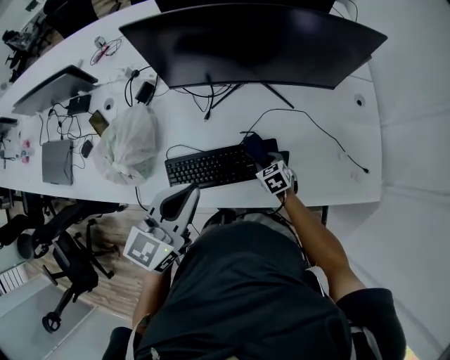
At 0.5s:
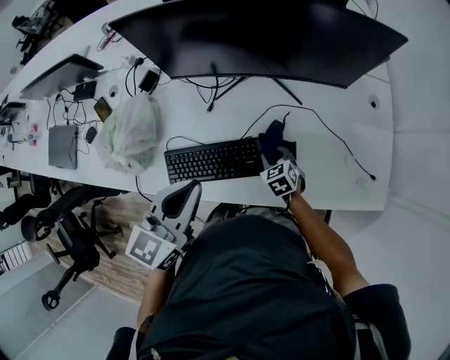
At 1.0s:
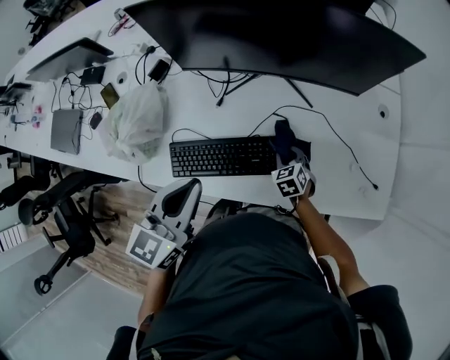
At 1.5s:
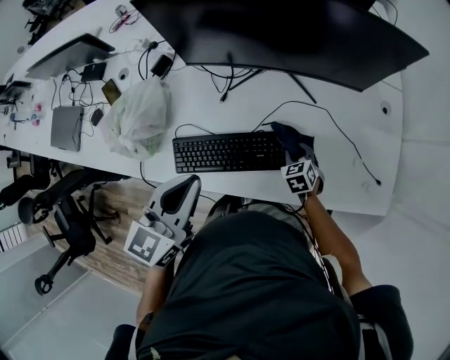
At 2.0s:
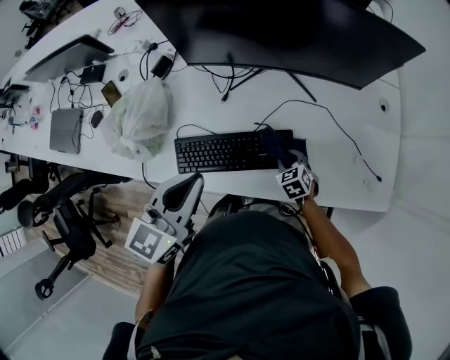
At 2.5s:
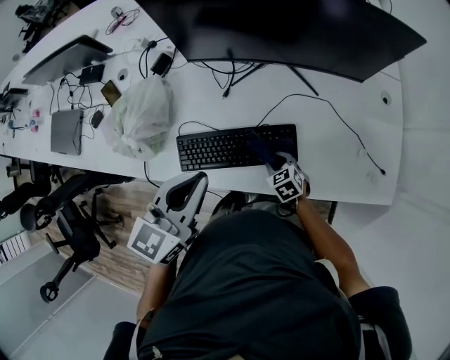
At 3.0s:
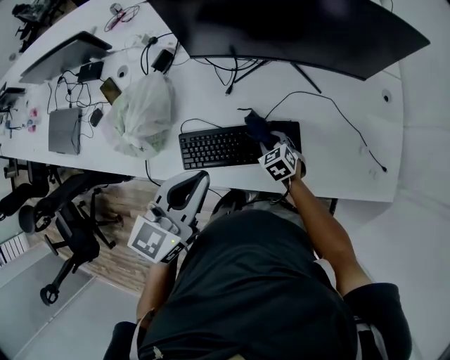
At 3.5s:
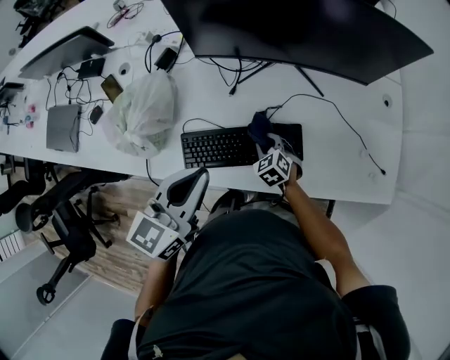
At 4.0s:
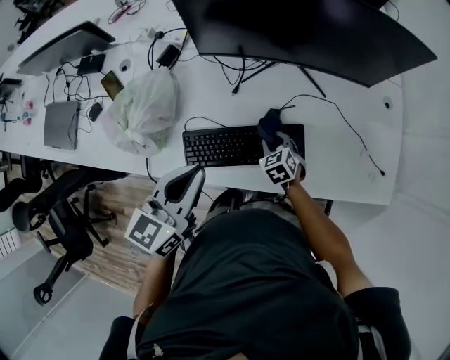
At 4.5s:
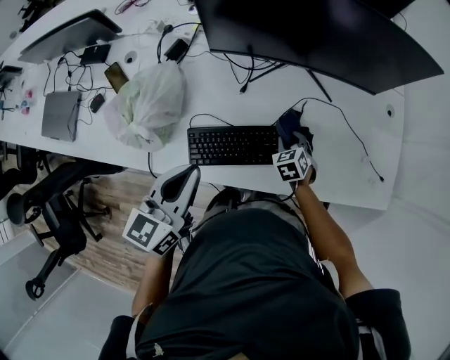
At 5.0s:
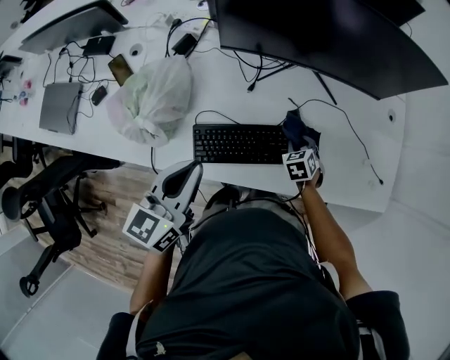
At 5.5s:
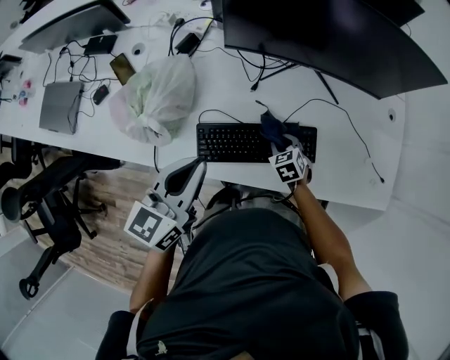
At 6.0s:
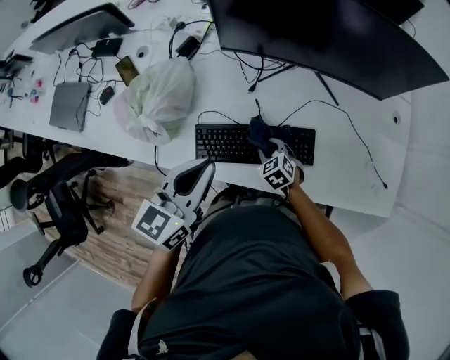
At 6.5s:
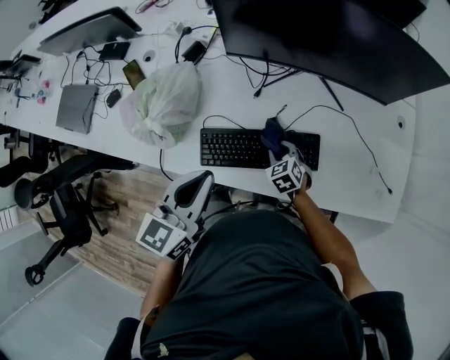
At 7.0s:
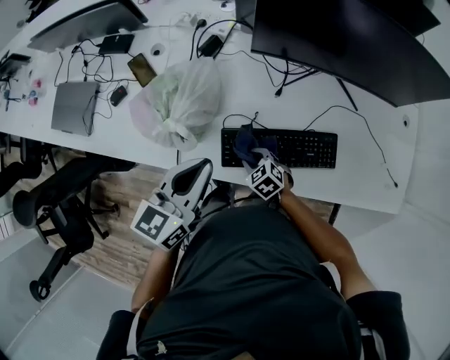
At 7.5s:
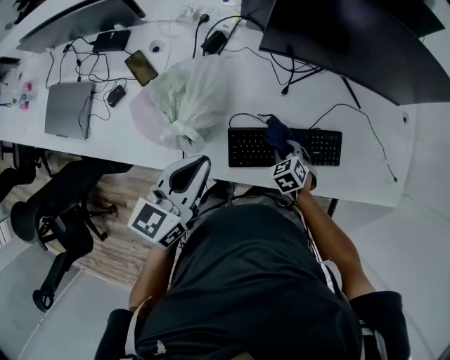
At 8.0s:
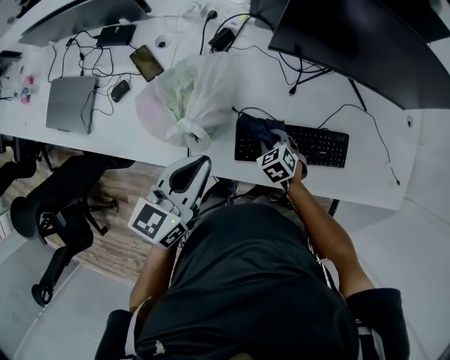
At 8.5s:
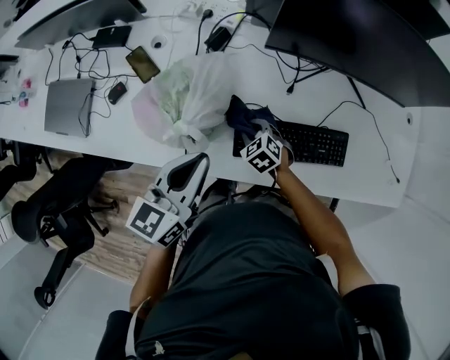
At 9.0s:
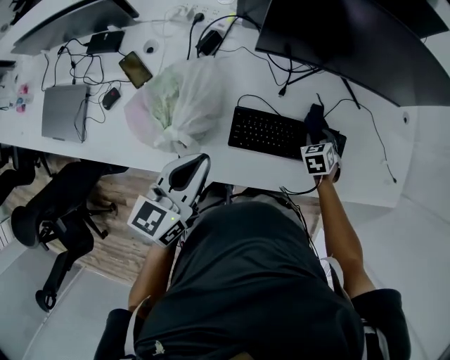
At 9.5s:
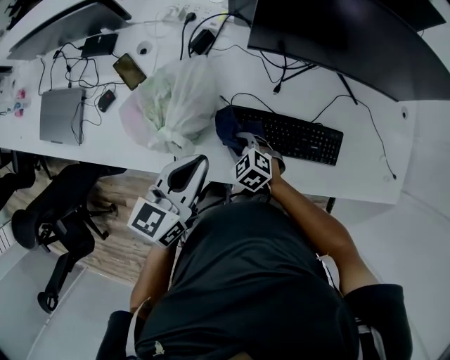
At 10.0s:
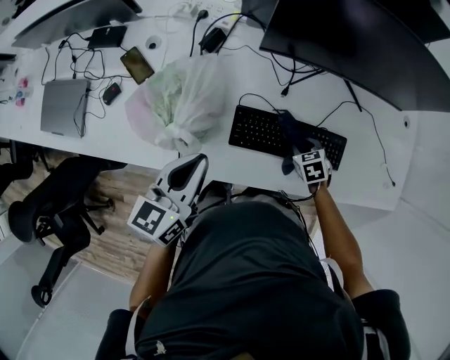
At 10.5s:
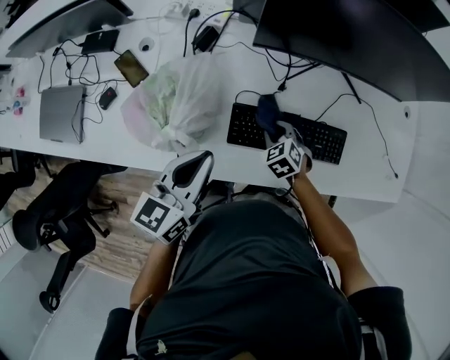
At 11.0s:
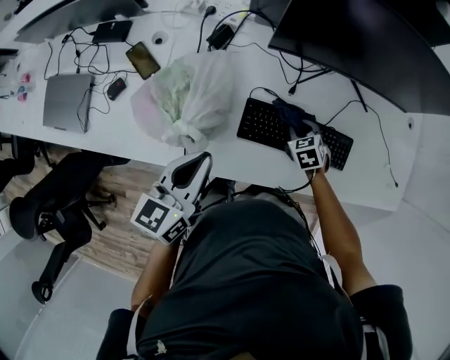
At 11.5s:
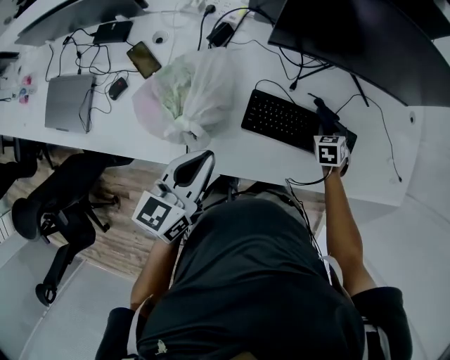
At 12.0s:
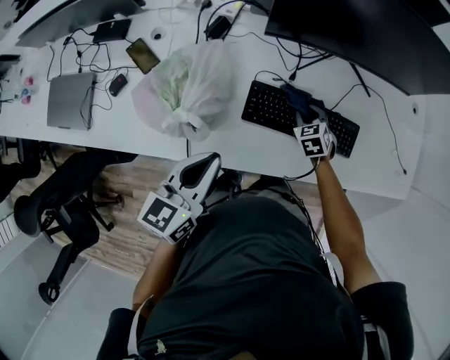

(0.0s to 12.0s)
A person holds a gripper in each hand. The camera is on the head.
2.0s - 4.0s: The left gripper shifts some 5 cm to the left, while the right gripper shifts approximately 10 cm to the left.
4.0s - 6.0s: The right gripper shifts roughly 5 cm to the left.
6.0s - 8.0s: The left gripper is displaced to the left by some 15 cm, while the right gripper goes left and right, some 20 cm each way, reversing 2 times.
8.0s - 10.0s: The right gripper shifts by approximately 15 cm.
10.0s - 12.0s: The right gripper moves left and right over about 15 cm, changing direction 2 times.

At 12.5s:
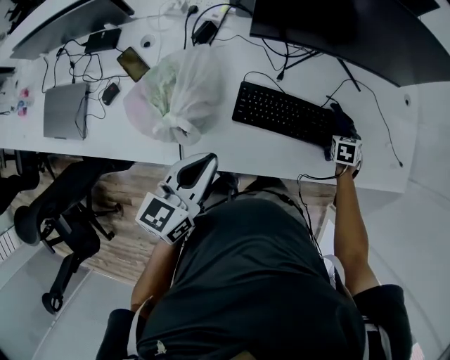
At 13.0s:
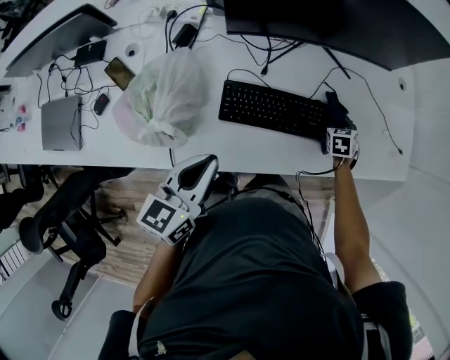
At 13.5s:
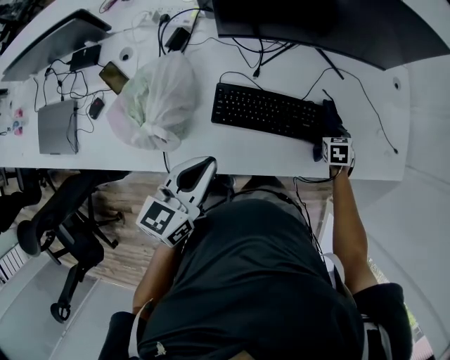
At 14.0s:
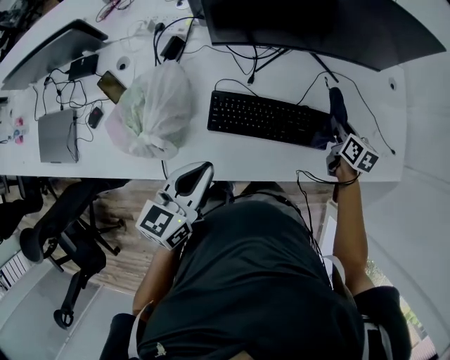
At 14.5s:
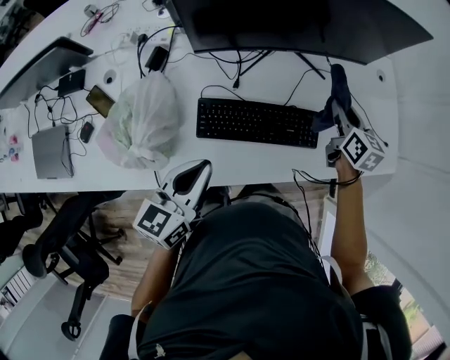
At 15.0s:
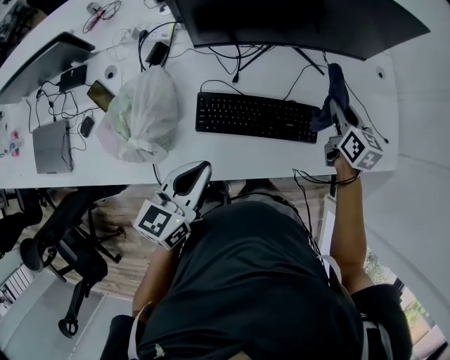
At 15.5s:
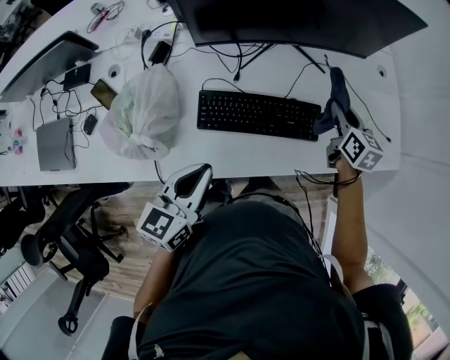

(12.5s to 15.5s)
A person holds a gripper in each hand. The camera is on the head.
12.5s - 14.0s: The left gripper heads to the right, covering about 5 cm; the right gripper shifts roughly 10 cm upward, and swivels about 40 degrees.
14.0s - 15.5s: The right gripper shifts some 10 cm upward.

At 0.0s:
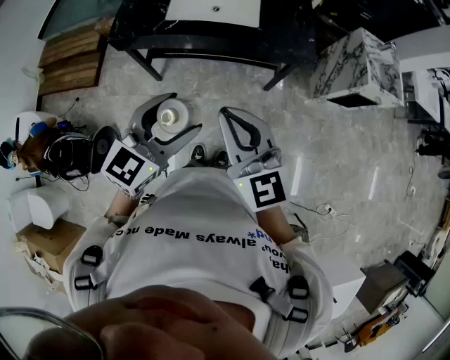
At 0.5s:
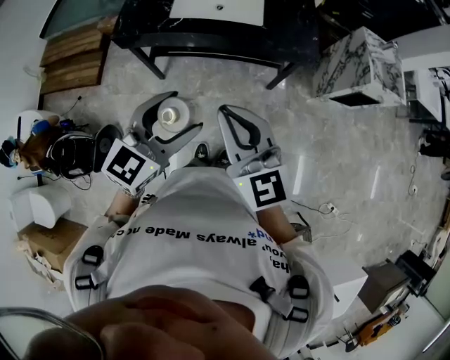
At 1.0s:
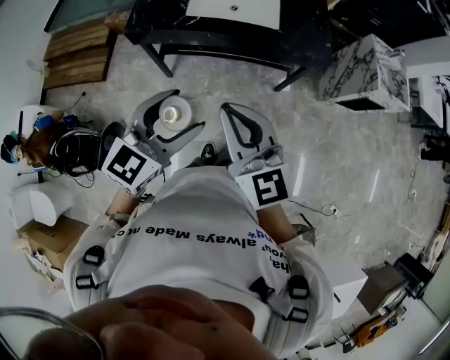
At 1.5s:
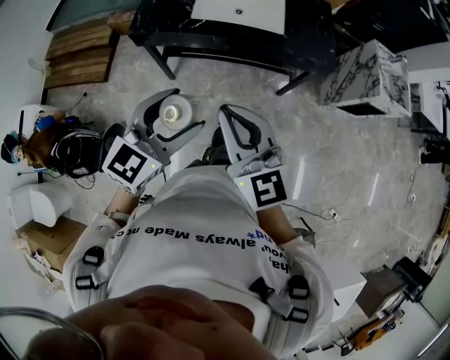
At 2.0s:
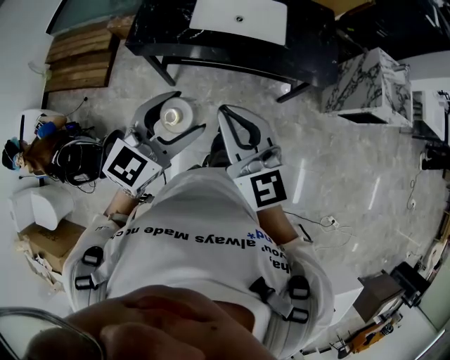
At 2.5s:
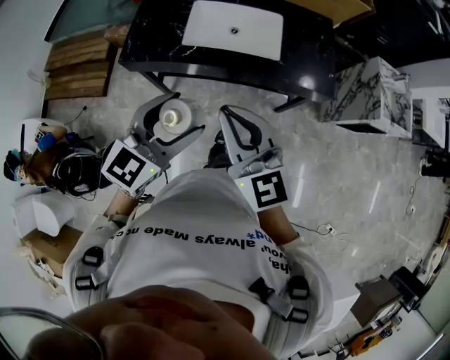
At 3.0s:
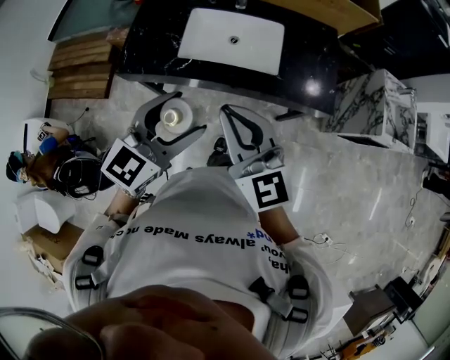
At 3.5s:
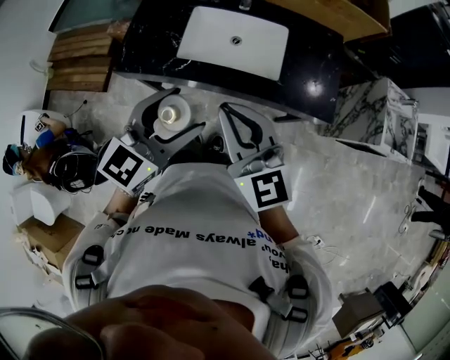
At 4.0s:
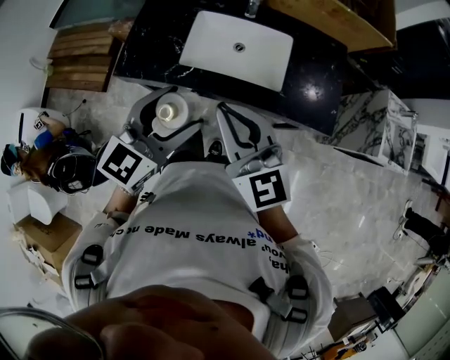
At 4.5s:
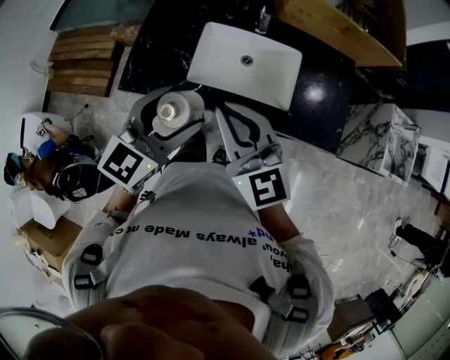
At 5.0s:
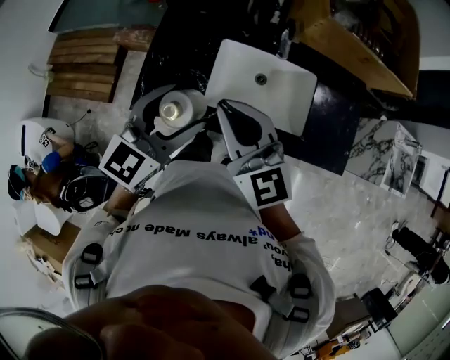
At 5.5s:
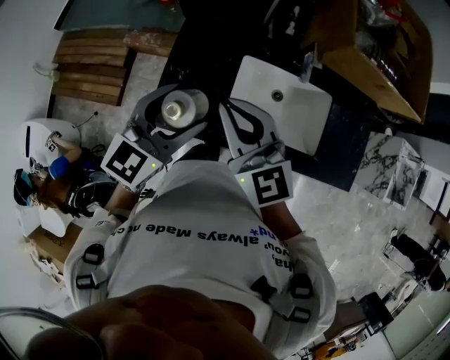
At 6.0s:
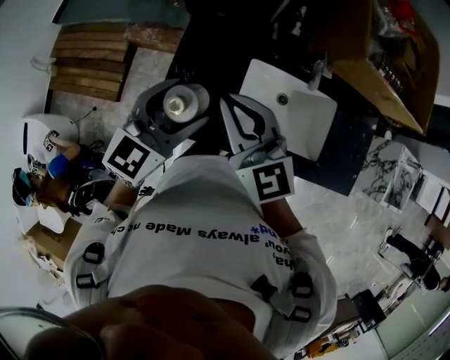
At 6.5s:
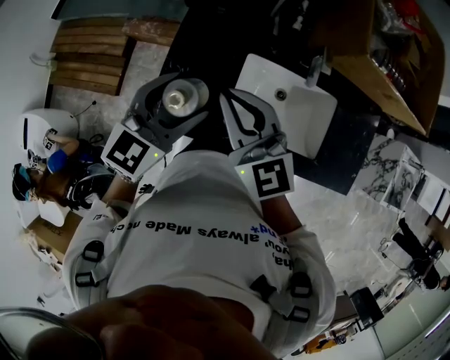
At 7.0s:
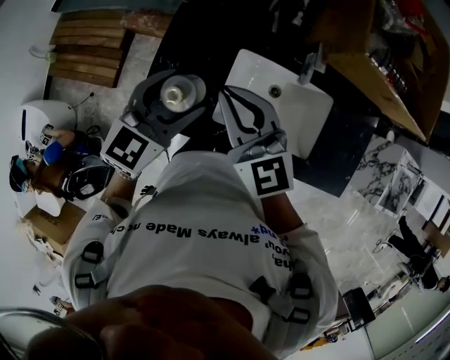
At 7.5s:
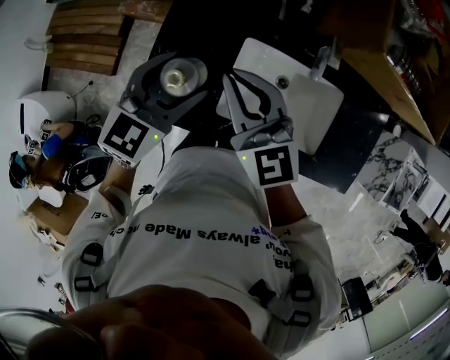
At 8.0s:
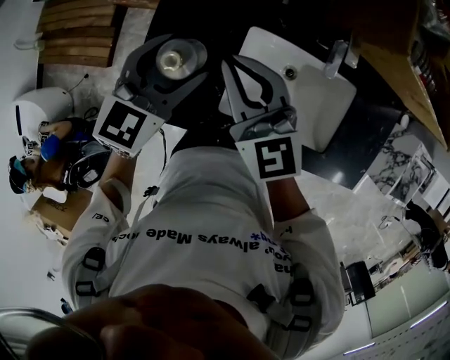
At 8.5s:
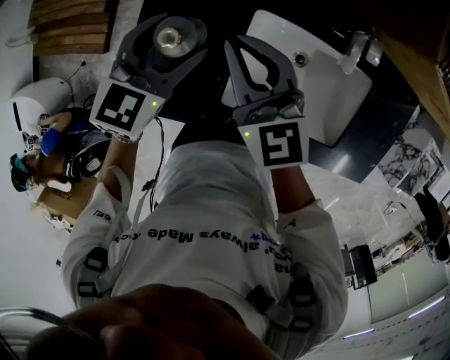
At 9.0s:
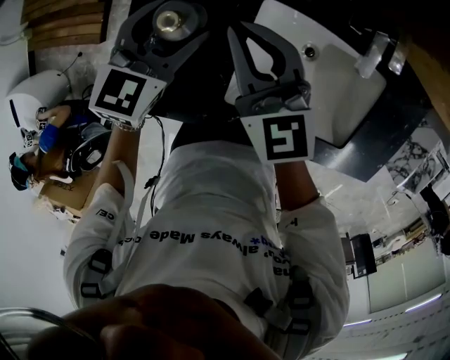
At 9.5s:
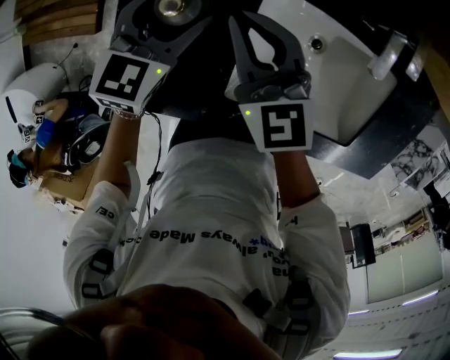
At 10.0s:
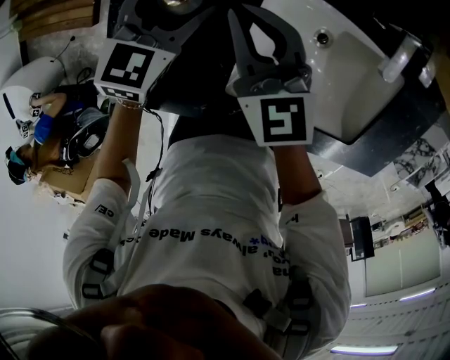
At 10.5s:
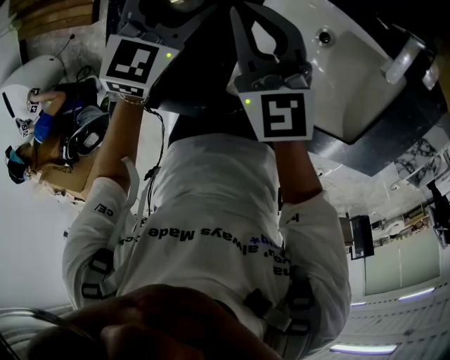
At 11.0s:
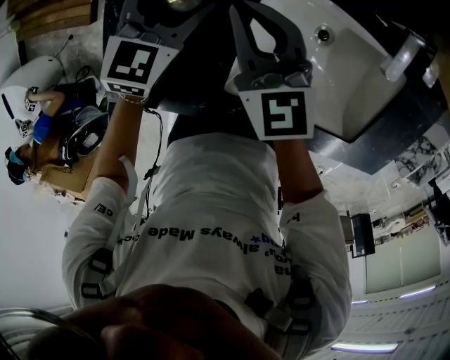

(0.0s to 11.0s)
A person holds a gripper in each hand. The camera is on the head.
0.0s - 2.0s: Both grippers travel together to the left and forward, some 10 cm.
2.0s - 3.5s: Both grippers travel together forward, approximately 20 cm.
3.5s - 5.5s: Both grippers move forward and to the left, about 35 cm.
5.5s - 7.5s: Both grippers travel together forward and downward, about 10 cm.
7.5s - 9.0s: The two grippers go some 20 cm downward and forward.
9.0s - 11.0s: Both grippers move downward, some 10 cm.

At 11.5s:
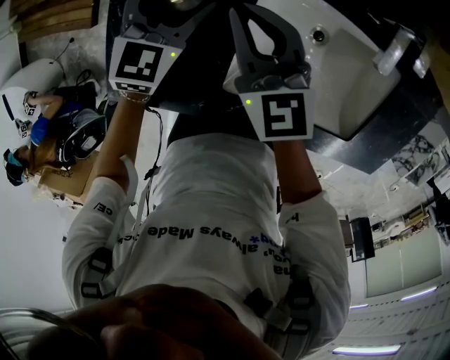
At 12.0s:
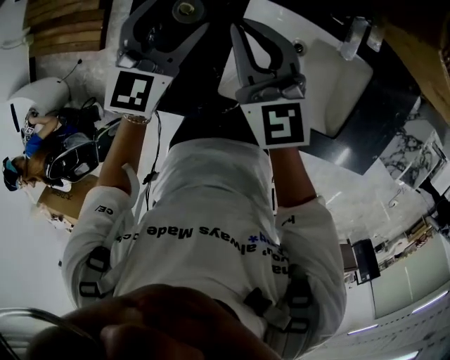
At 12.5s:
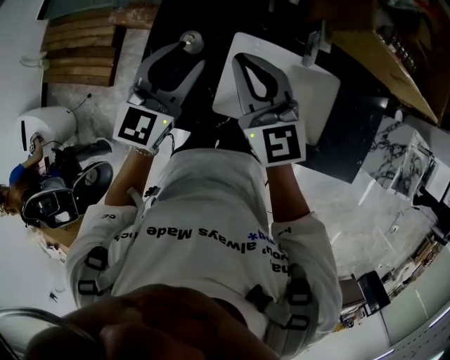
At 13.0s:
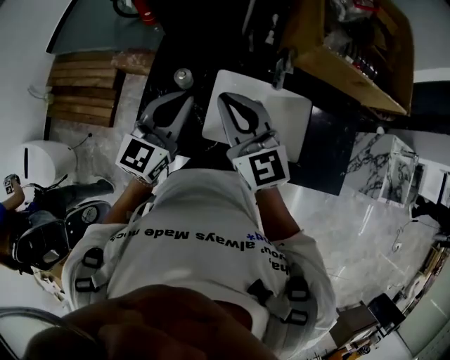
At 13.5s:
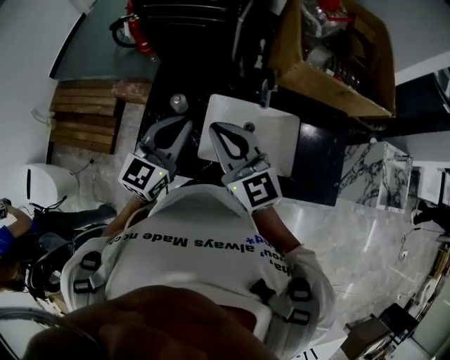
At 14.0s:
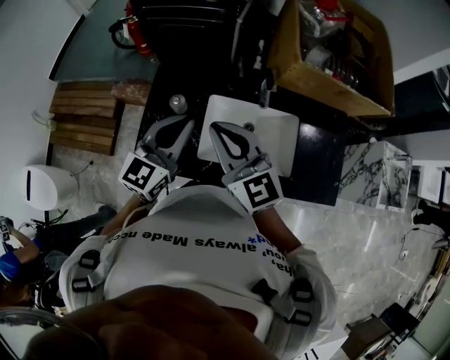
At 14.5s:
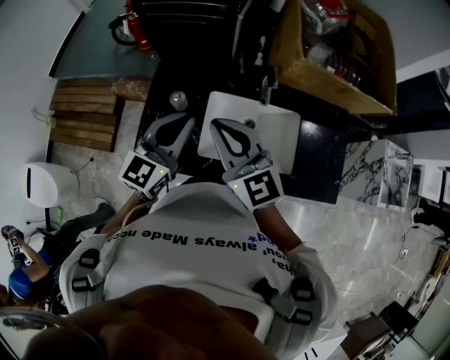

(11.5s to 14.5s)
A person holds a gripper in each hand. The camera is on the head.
11.5s - 13.0s: The two grippers go about 30 cm upward and backward. The left gripper rotates about 20 degrees, and closes.
13.0s - 14.5s: The left gripper changes place by approximately 5 cm.
